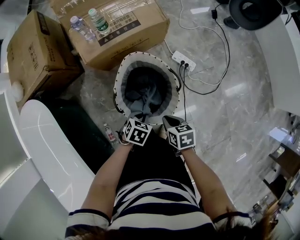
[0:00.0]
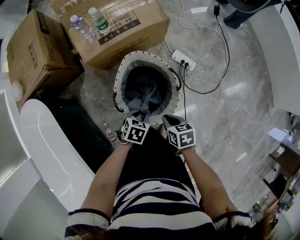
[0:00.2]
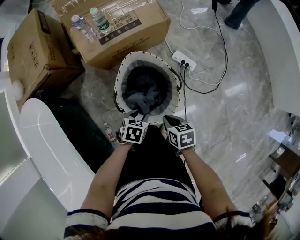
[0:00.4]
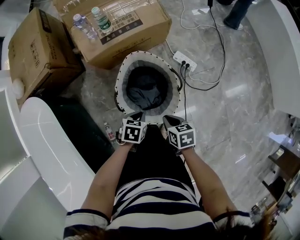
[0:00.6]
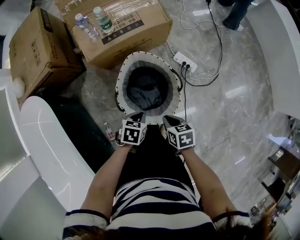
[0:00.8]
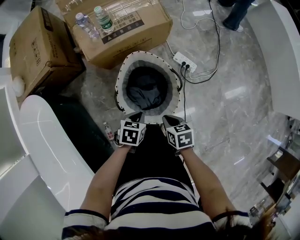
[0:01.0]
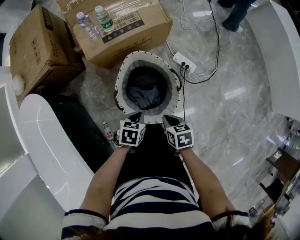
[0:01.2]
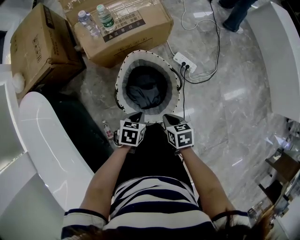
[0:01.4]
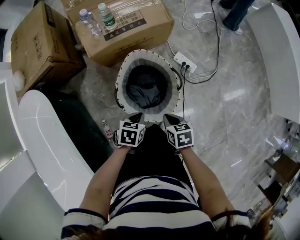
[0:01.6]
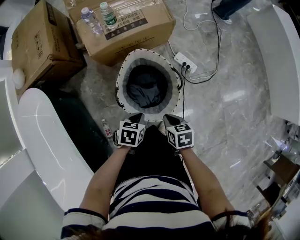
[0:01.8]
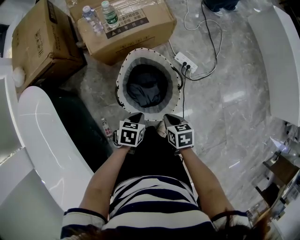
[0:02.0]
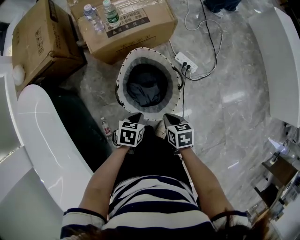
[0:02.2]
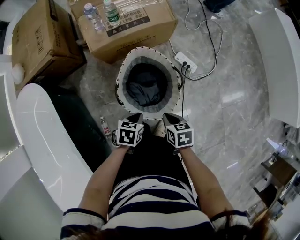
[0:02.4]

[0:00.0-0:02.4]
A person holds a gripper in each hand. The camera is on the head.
0:00.0 to 0:01.2: The left gripper opens, then closes once more.
0:01.2 to 0:02.4: The grippers make only small movements.

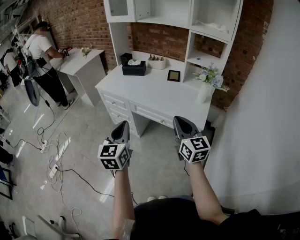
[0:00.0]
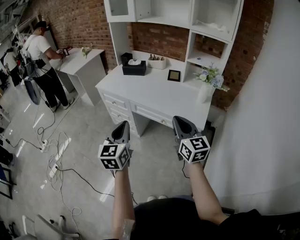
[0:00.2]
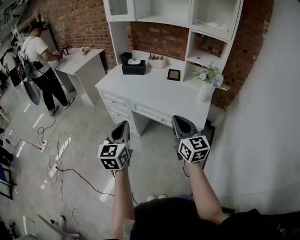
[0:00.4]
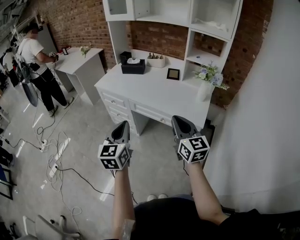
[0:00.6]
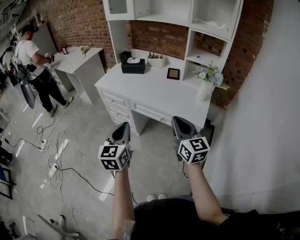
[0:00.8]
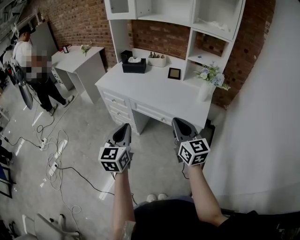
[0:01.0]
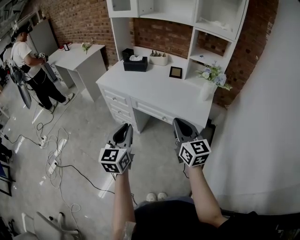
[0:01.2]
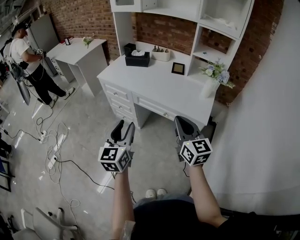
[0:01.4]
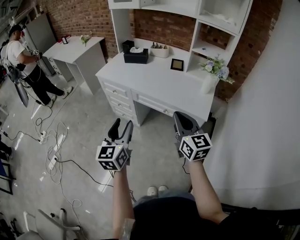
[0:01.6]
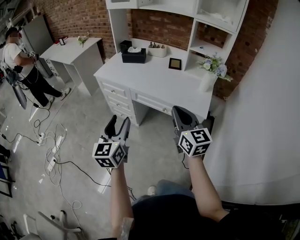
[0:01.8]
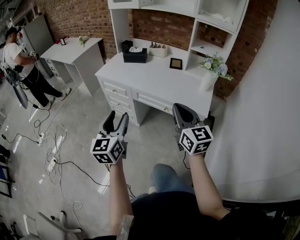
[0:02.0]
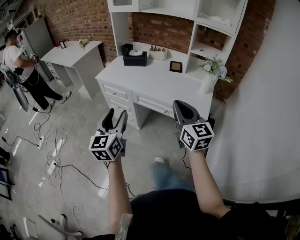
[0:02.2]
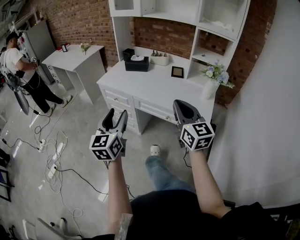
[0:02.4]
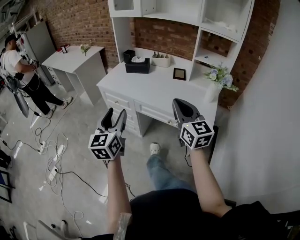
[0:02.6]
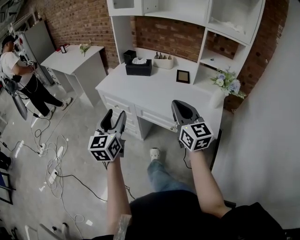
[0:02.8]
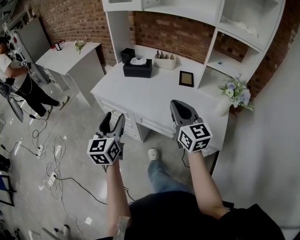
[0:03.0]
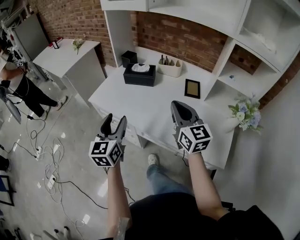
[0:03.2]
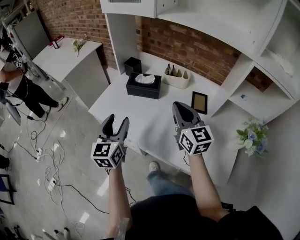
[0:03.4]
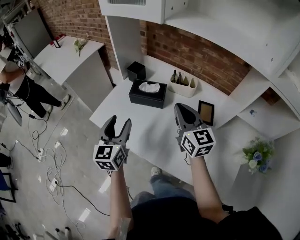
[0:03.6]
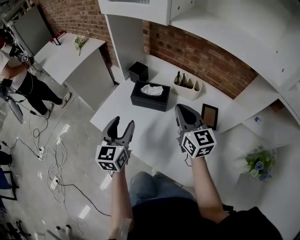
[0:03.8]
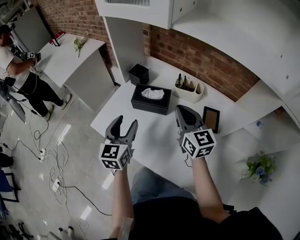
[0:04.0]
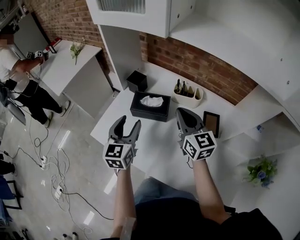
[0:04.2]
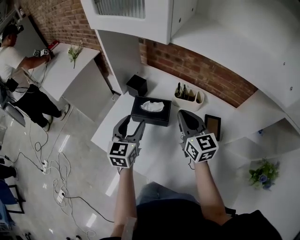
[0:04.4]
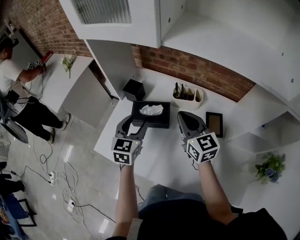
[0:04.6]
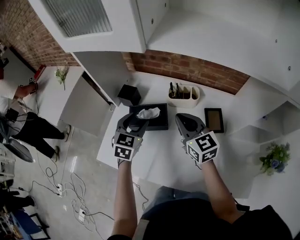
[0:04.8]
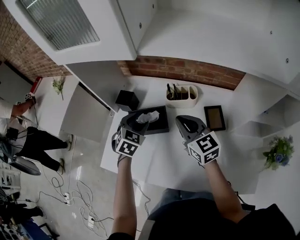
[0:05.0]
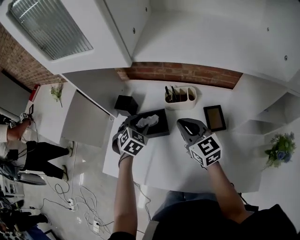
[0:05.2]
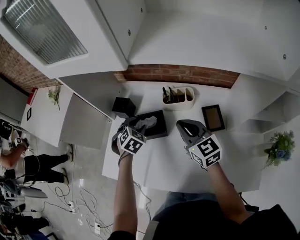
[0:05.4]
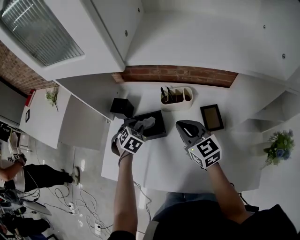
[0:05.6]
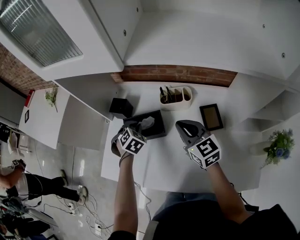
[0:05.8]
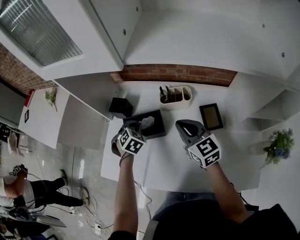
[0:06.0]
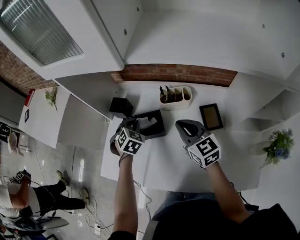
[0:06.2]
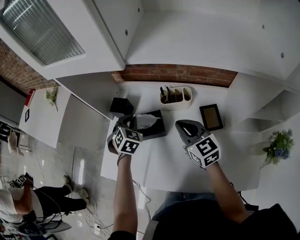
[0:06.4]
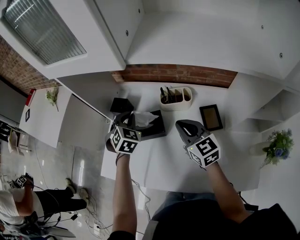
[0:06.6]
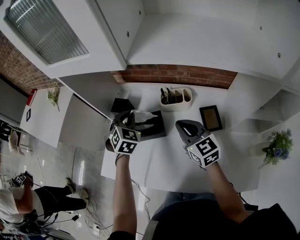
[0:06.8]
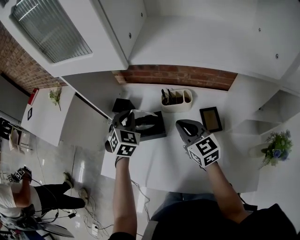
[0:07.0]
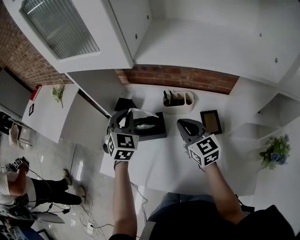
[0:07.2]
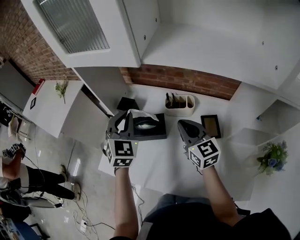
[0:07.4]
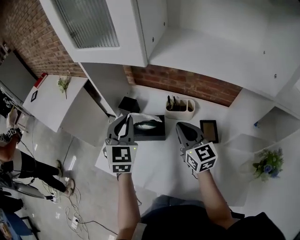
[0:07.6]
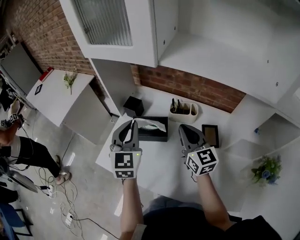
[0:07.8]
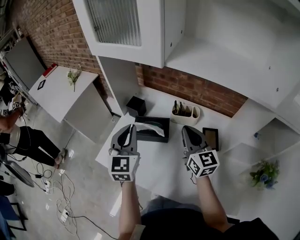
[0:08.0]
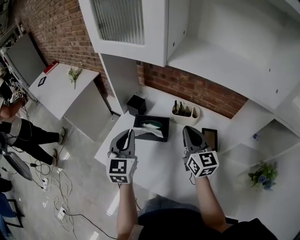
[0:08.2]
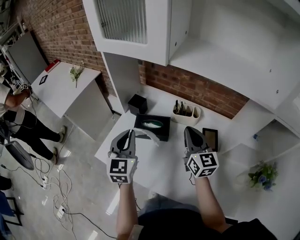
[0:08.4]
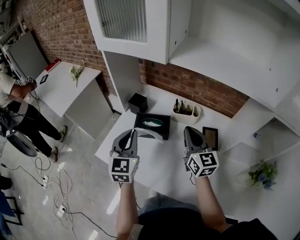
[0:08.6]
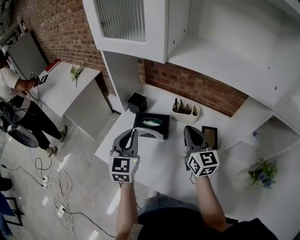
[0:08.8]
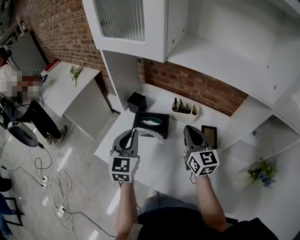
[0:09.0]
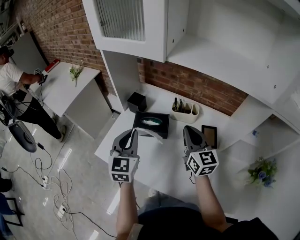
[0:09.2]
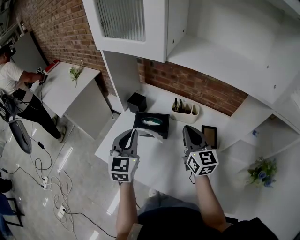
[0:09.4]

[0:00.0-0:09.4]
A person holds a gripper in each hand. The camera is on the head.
0:00.0 to 0:01.6: The left gripper opens its fingers.
0:01.6 to 0:03.2: The grippers both shift forward by roughly 35 cm.
0:03.2 to 0:04.8: Both grippers travel together forward, some 35 cm. The left gripper swivels roughly 40 degrees.
0:04.8 to 0:06.2: The left gripper heads downward and forward, covering some 10 cm, rotates some 30 degrees, and closes.
0:06.2 to 0:07.8: The right gripper moves upward, about 5 cm, while the left gripper goes approximately 25 cm upward and backward, and tips its fingers upward by some 40 degrees.
0:07.8 to 0:09.4: The left gripper travels backward by approximately 5 cm.

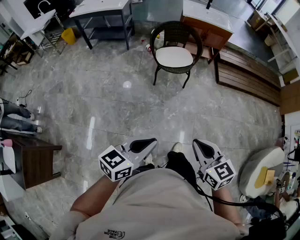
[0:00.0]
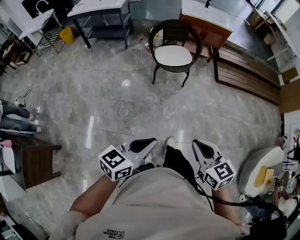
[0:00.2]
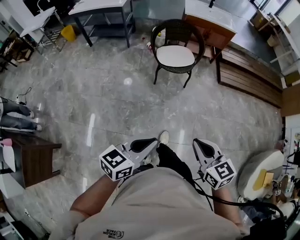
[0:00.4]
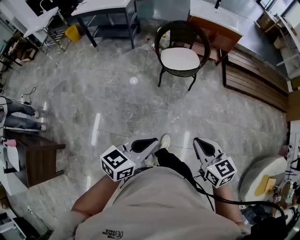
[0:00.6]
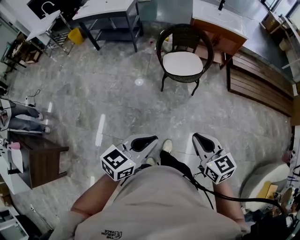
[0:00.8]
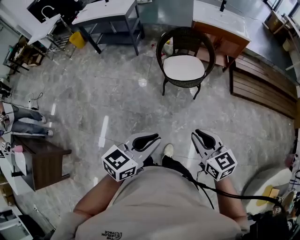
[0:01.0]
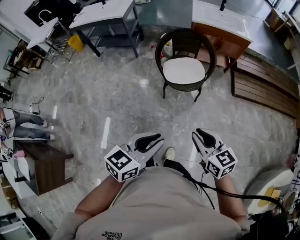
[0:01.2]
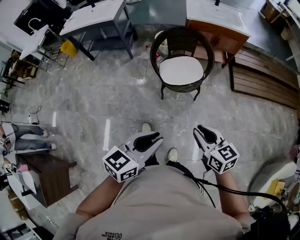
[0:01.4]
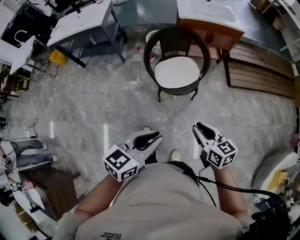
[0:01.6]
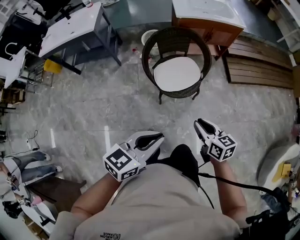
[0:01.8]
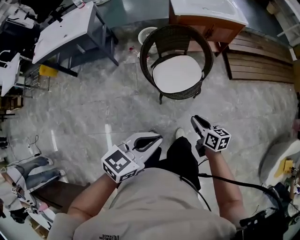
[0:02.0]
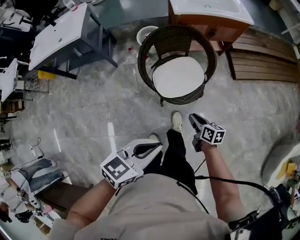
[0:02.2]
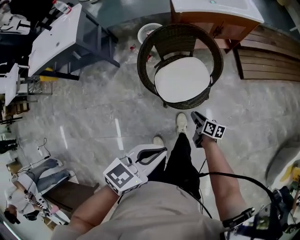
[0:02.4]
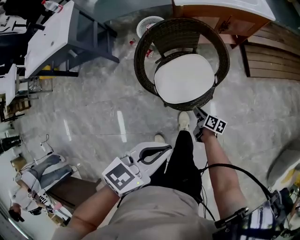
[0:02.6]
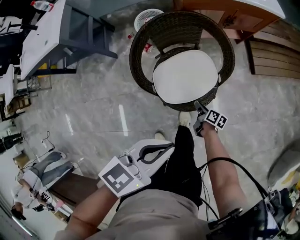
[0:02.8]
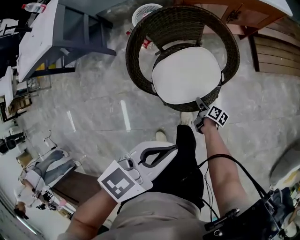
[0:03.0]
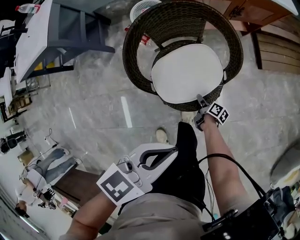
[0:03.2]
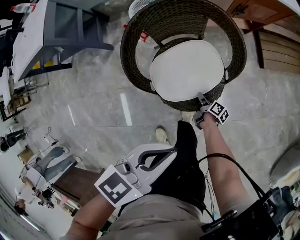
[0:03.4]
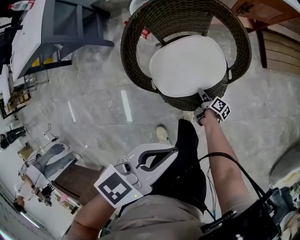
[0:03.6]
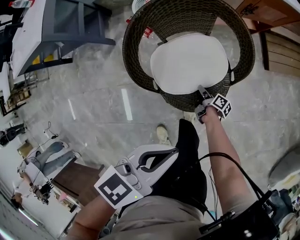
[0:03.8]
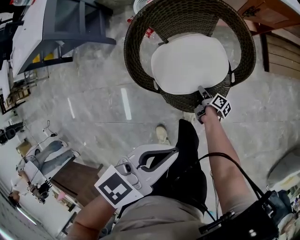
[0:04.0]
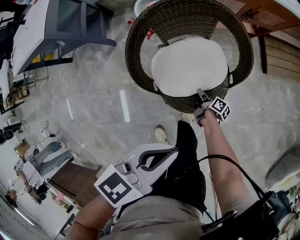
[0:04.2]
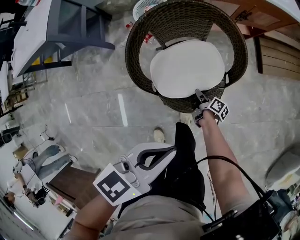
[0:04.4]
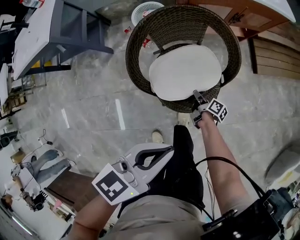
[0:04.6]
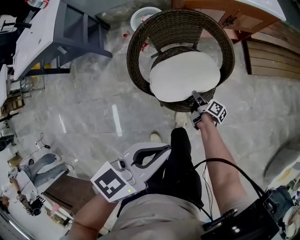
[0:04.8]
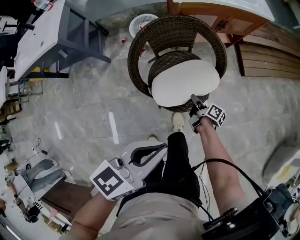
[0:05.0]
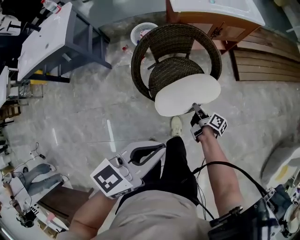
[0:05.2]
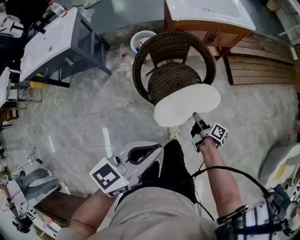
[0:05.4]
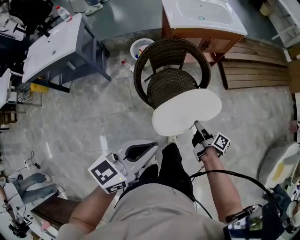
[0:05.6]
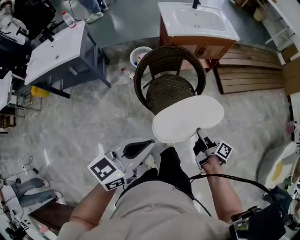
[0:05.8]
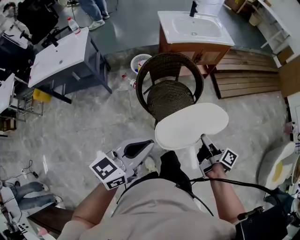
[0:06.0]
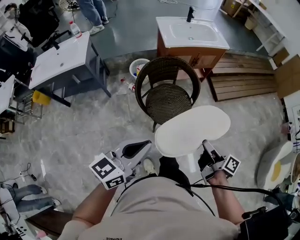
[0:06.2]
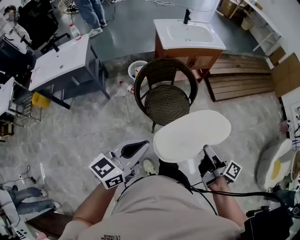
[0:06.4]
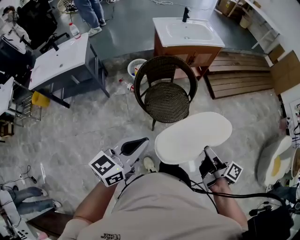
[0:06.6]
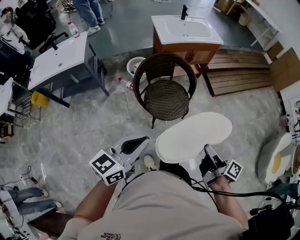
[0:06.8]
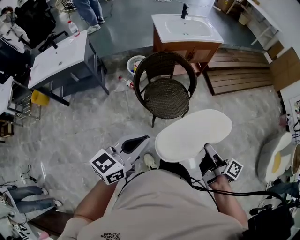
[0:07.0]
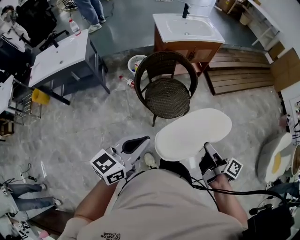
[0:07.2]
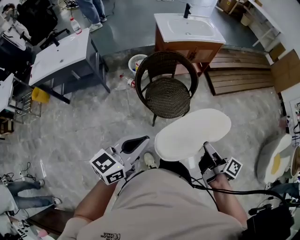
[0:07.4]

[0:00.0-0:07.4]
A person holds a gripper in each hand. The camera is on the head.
0:00.0 to 0:01.4: The grippers both shift forward by roughly 35 cm.
0:01.4 to 0:03.0: The pair of grippers is taken forward, about 40 cm. The right gripper goes about 50 cm downward, and twists about 70 degrees clockwise, seen from behind. The left gripper rotates some 20 degrees.
0:03.0 to 0:04.4: The right gripper moves roughly 5 cm, and closes up.
0:04.4 to 0:06.0: The left gripper goes about 30 cm backward and upward, and swivels some 20 degrees. The right gripper heads upward and backward, covering roughly 50 cm, and swivels approximately 30 degrees.
0:06.0 to 0:07.4: The right gripper travels backward and upward by about 15 cm. The left gripper travels backward by about 5 cm.

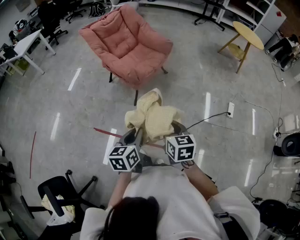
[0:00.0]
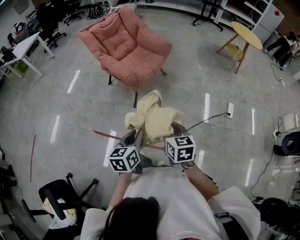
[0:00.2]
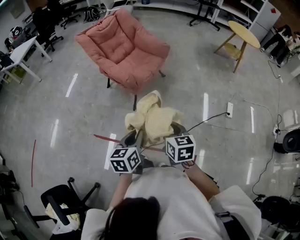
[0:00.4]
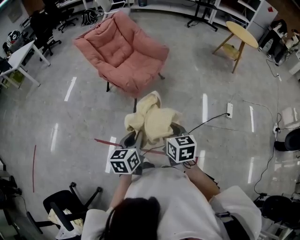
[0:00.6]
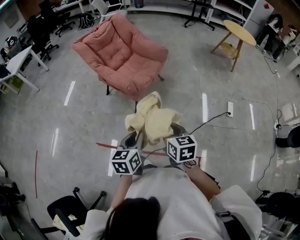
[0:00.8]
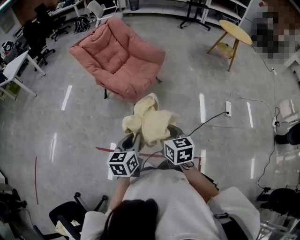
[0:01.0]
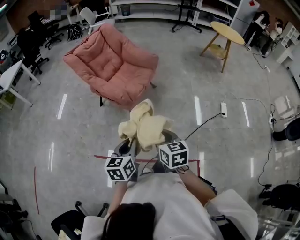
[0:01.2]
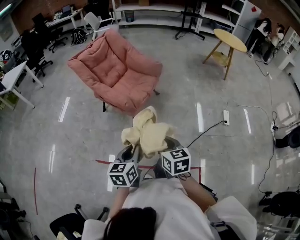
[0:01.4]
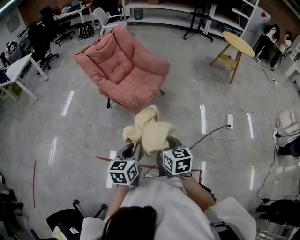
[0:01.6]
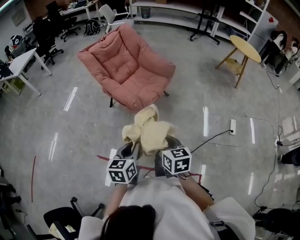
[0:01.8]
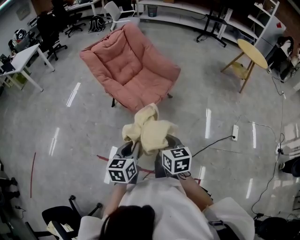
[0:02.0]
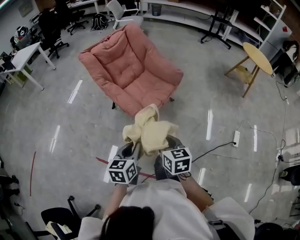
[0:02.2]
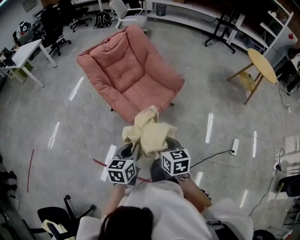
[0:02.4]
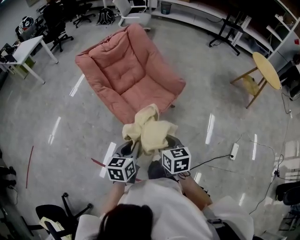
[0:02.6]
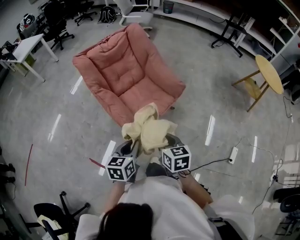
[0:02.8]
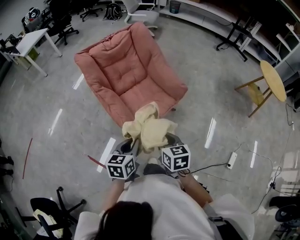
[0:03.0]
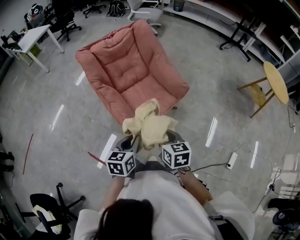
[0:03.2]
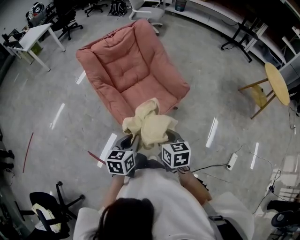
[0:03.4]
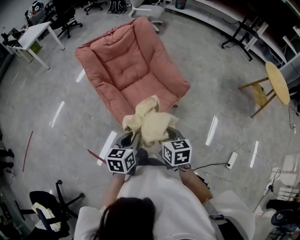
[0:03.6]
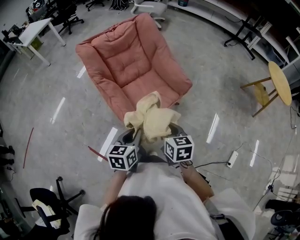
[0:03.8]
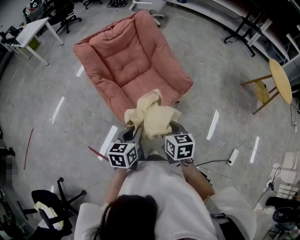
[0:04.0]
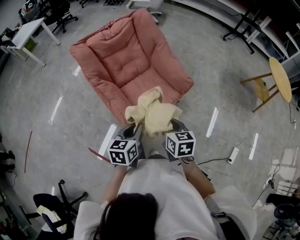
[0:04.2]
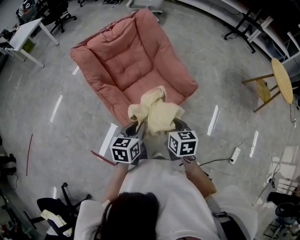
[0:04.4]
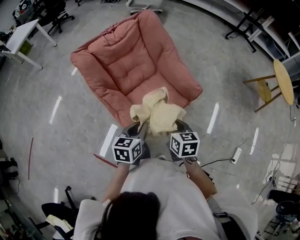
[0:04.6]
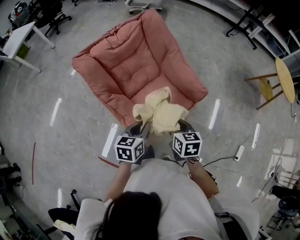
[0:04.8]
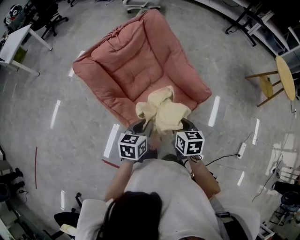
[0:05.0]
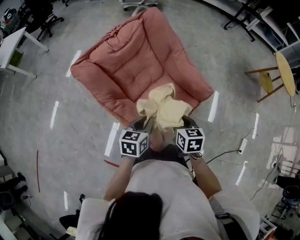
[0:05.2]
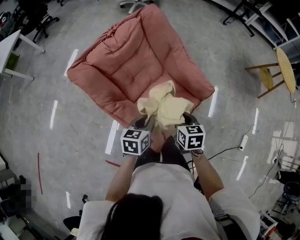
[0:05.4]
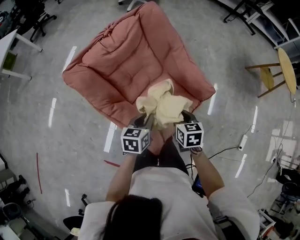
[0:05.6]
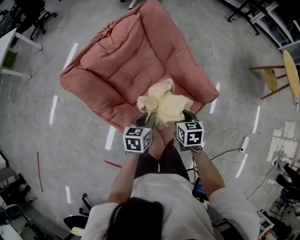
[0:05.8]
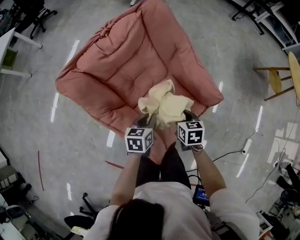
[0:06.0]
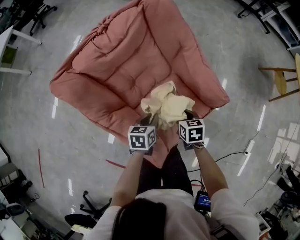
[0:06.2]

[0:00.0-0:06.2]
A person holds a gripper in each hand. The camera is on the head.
0:00.0 to 0:01.6: The right gripper heads to the left and forward, covering about 10 cm; the left gripper shifts some 10 cm forward and to the left.
0:01.6 to 0:03.2: The grippers both shift forward by approximately 35 cm.
0:03.2 to 0:04.6: Both grippers travel together forward, some 15 cm.
0:04.6 to 0:06.2: Both grippers travel together forward and downward, roughly 30 cm.
